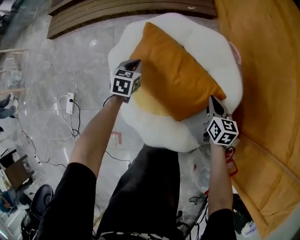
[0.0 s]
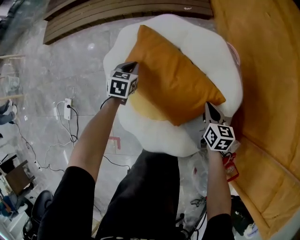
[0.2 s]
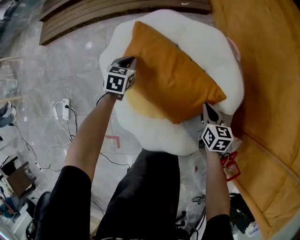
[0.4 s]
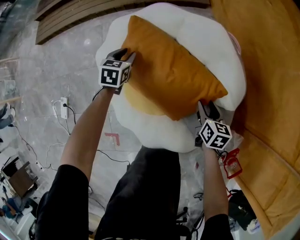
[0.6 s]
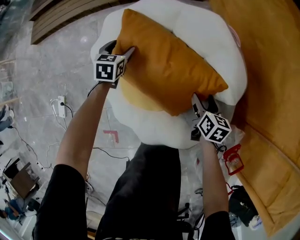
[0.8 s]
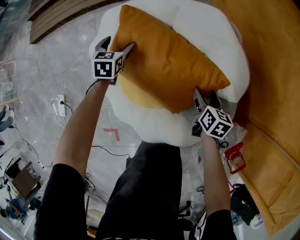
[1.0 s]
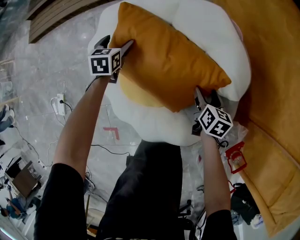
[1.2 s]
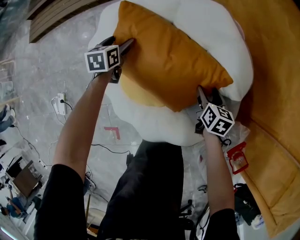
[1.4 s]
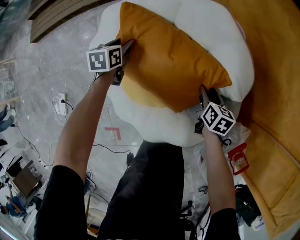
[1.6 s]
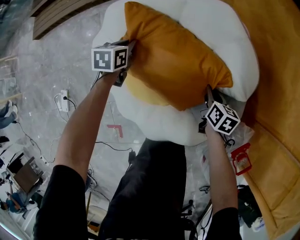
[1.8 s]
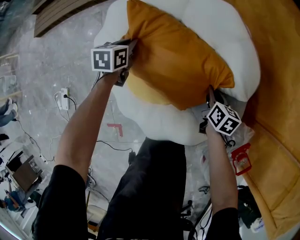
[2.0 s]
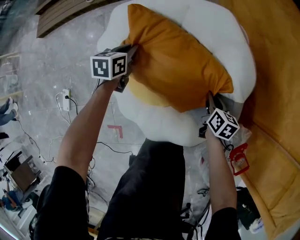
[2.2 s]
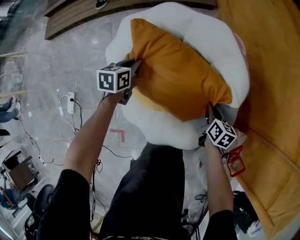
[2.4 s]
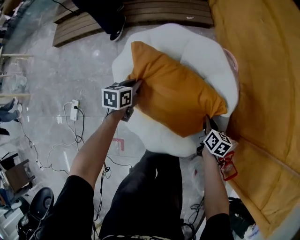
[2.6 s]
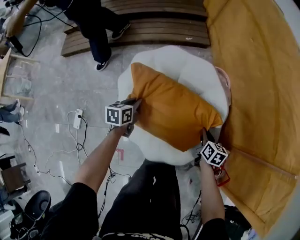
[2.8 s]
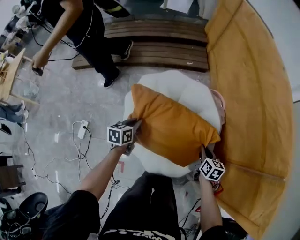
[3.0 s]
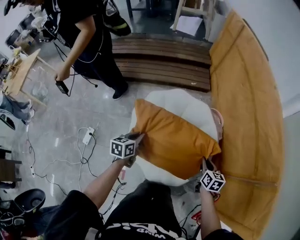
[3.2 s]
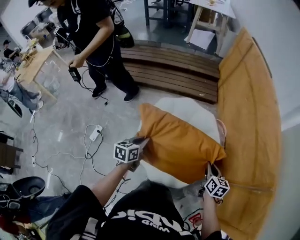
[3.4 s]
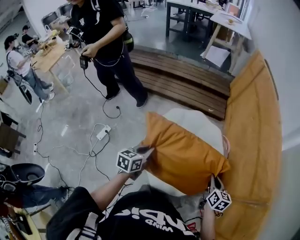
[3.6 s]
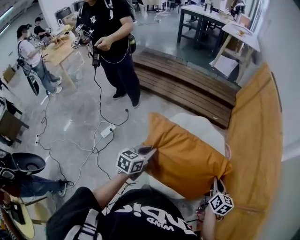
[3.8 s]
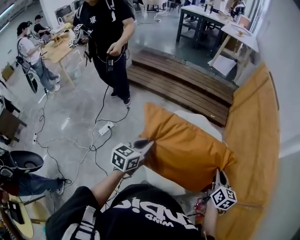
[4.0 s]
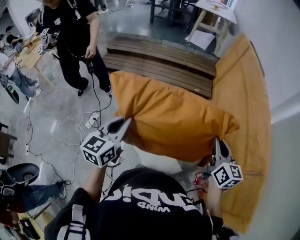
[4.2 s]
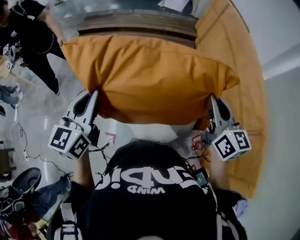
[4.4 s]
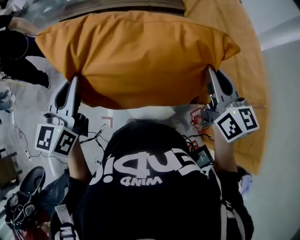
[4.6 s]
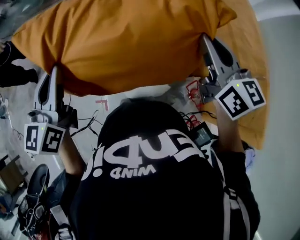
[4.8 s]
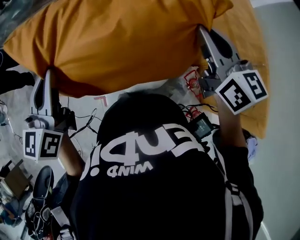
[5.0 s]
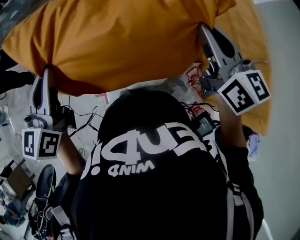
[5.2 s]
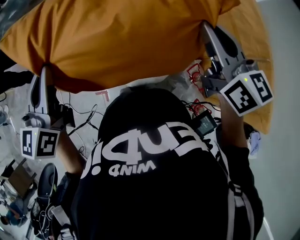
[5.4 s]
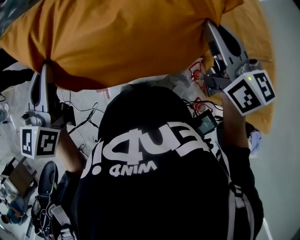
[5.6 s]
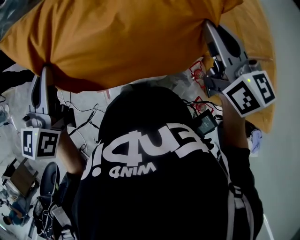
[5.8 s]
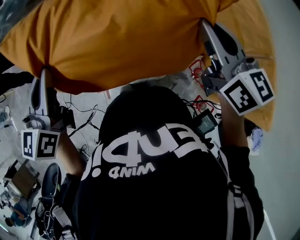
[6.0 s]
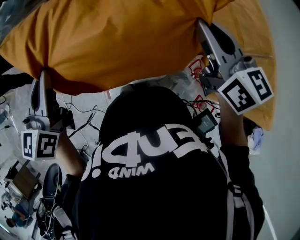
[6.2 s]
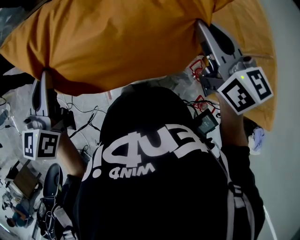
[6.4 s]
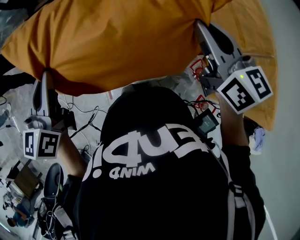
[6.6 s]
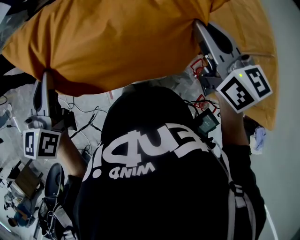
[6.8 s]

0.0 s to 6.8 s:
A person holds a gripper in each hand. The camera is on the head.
0.0 to 1.4 s: The right gripper shifts about 15 cm downward, and opens up, while the left gripper shifts some 10 cm downward and forward, and opens.
1.4 to 2.8 s: The grippers both shift upward and backward by approximately 20 cm. The right gripper closes its fingers. The left gripper closes up.
2.8 to 4.0 s: The left gripper is displaced upward and backward by approximately 50 cm, and changes its angle by some 30 degrees. Meanwhile the right gripper shifts approximately 40 cm upward, and turns by about 30 degrees.
4.0 to 5.4 s: The two grippers go approximately 15 cm upward.
5.4 to 6.8 s: The grippers move only a little.

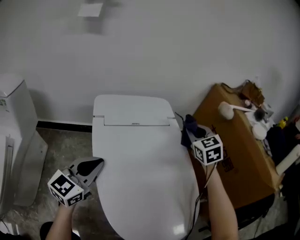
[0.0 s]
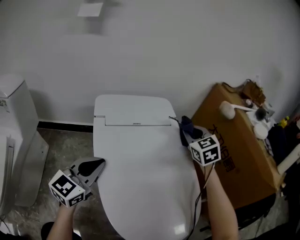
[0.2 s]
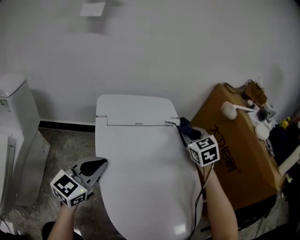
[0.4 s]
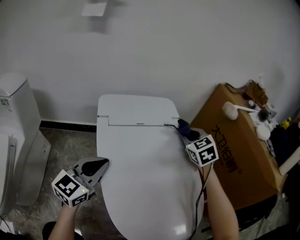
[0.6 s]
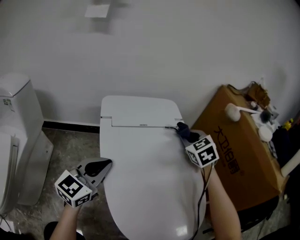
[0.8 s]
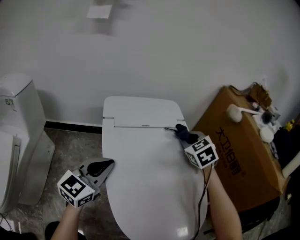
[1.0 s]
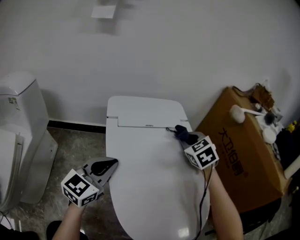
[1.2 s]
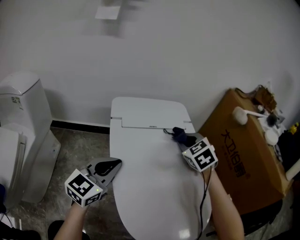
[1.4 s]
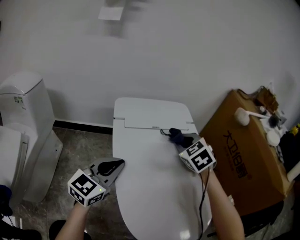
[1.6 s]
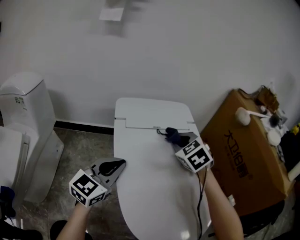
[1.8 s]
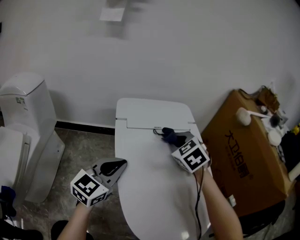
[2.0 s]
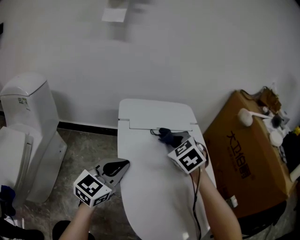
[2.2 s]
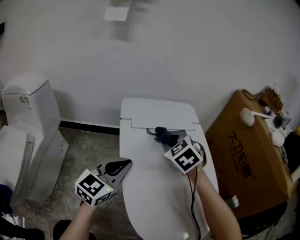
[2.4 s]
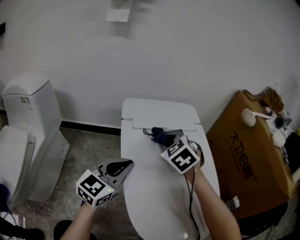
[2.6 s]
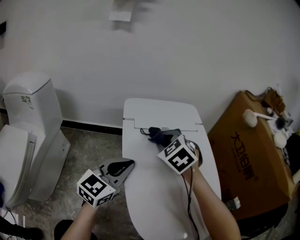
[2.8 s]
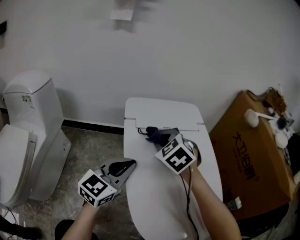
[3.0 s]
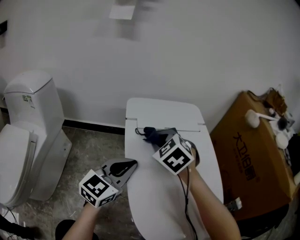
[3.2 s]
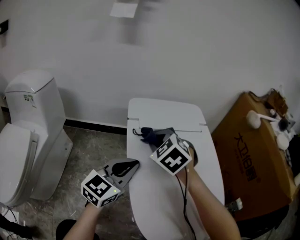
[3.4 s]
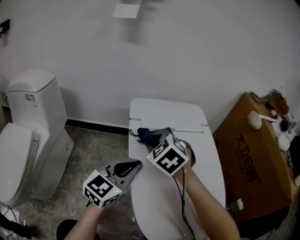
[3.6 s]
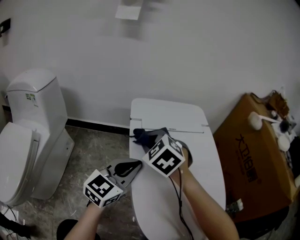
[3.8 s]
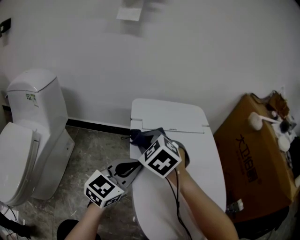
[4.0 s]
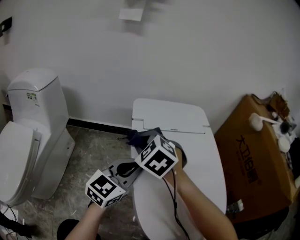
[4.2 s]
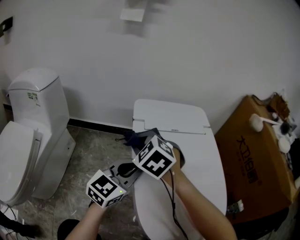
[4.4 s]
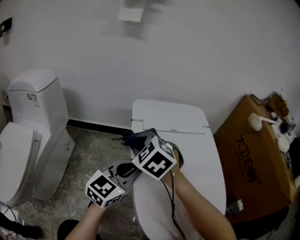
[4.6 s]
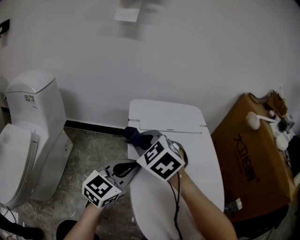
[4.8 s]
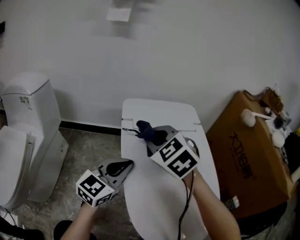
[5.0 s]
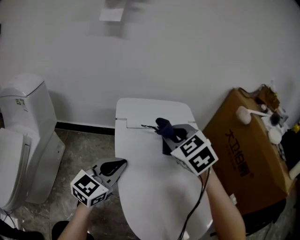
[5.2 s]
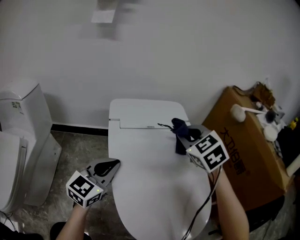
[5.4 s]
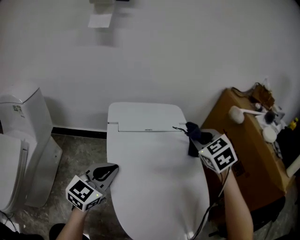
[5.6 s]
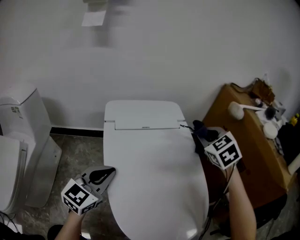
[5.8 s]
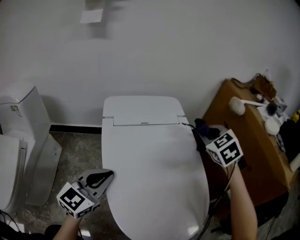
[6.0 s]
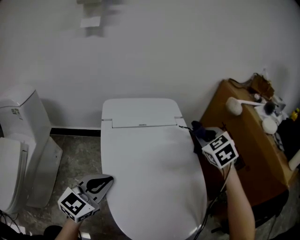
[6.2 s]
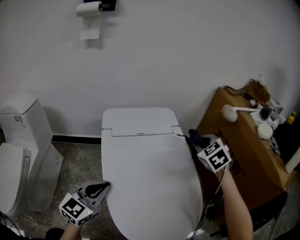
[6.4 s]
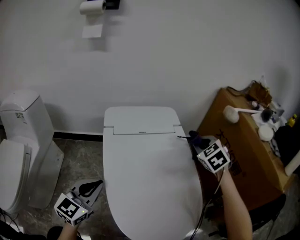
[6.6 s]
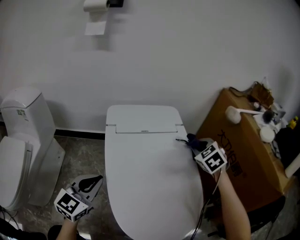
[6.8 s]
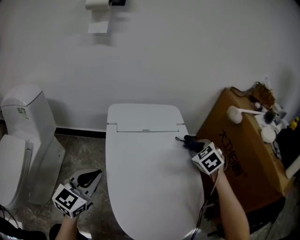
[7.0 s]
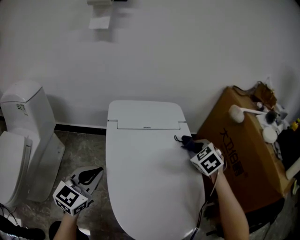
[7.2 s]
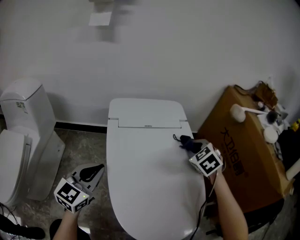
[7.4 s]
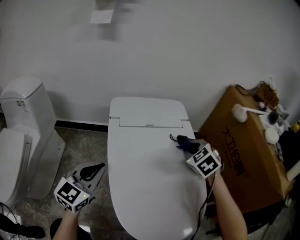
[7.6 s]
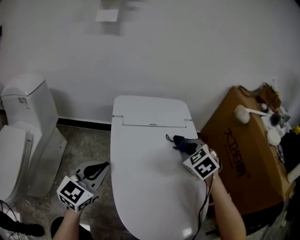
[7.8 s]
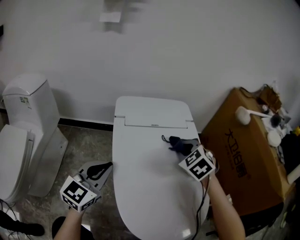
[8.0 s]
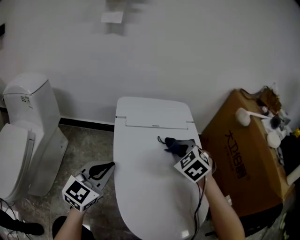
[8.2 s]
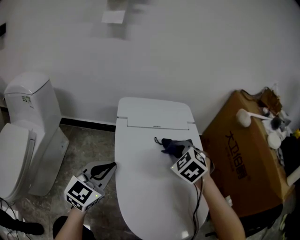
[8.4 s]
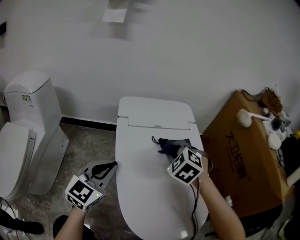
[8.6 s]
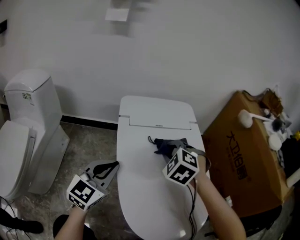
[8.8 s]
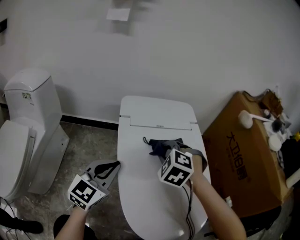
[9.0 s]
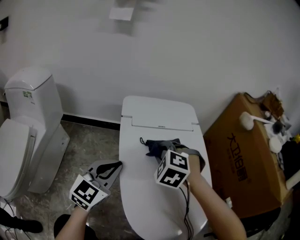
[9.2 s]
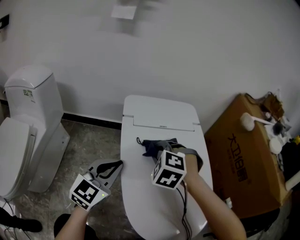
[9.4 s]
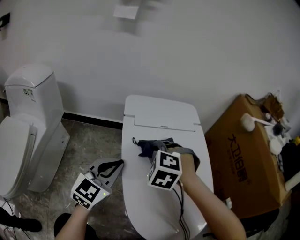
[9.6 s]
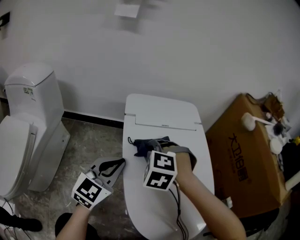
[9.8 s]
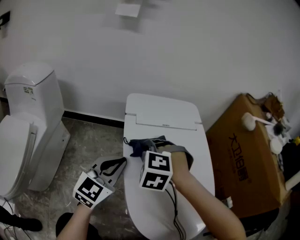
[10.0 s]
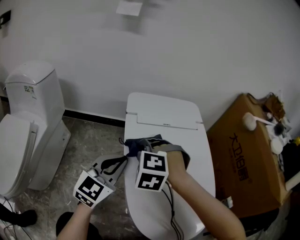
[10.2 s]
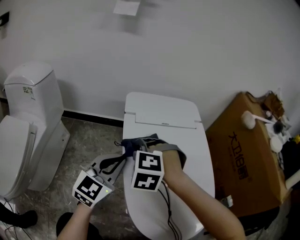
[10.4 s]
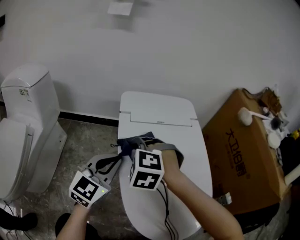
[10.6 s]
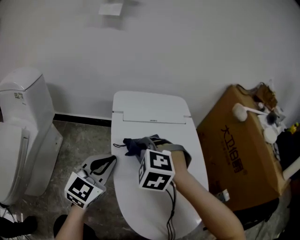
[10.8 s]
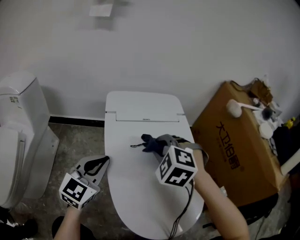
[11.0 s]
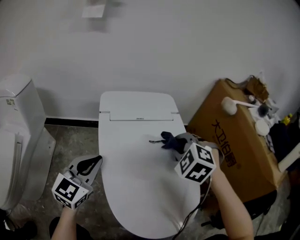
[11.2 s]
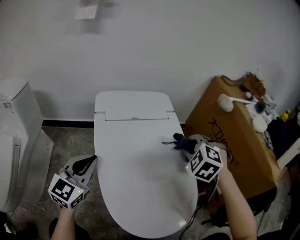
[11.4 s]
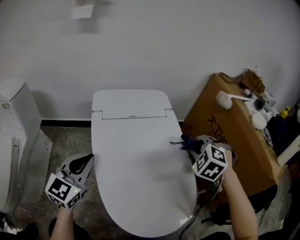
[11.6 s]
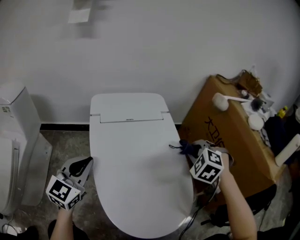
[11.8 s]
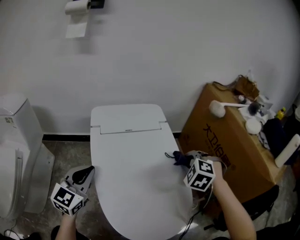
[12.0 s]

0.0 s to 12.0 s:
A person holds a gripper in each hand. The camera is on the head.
0.0 to 1.6 s: The right gripper goes roughly 15 cm to the left, downward and backward, and turns by some 20 degrees.
1.6 to 3.0 s: The right gripper goes about 15 cm to the left.
3.0 to 4.4 s: The right gripper moves to the left, approximately 10 cm.
4.4 to 6.0 s: The right gripper heads to the right, covering roughly 35 cm, and swivels approximately 30 degrees.
6.0 to 7.6 s: The left gripper goes approximately 5 cm to the left; the right gripper heads downward and to the left, covering some 10 cm.
7.6 to 9.0 s: The right gripper goes about 15 cm to the left, and rotates approximately 30 degrees.
9.0 to 10.4 s: The right gripper goes approximately 10 cm to the left.
10.4 to 12.0 s: The right gripper heads to the right, covering about 35 cm, and turns by approximately 30 degrees.

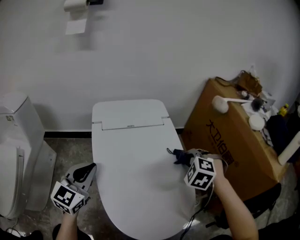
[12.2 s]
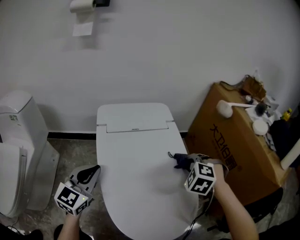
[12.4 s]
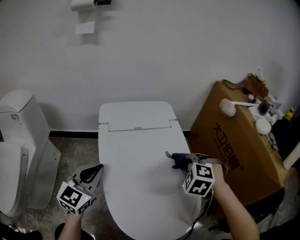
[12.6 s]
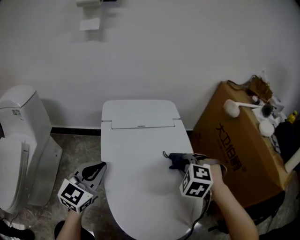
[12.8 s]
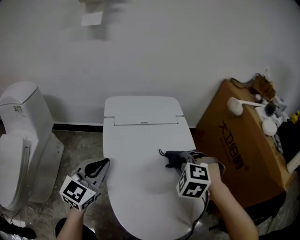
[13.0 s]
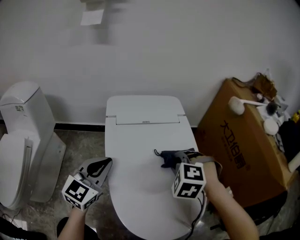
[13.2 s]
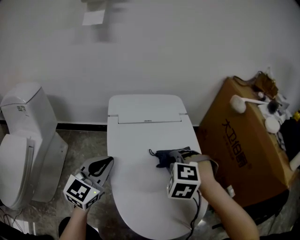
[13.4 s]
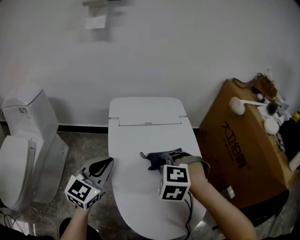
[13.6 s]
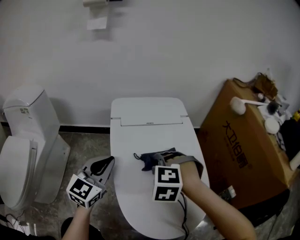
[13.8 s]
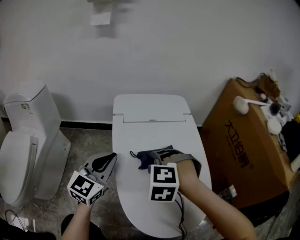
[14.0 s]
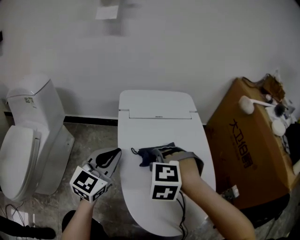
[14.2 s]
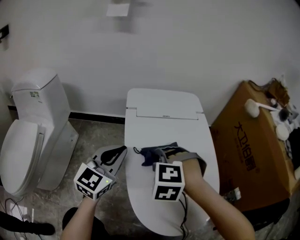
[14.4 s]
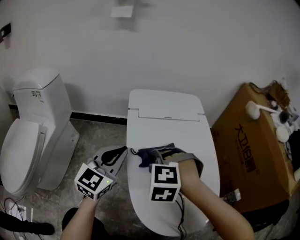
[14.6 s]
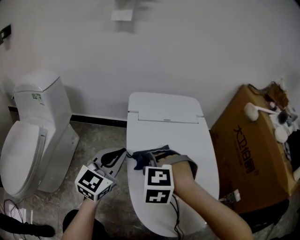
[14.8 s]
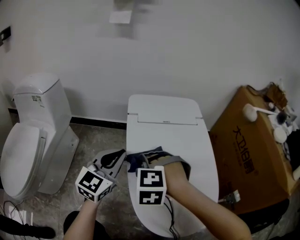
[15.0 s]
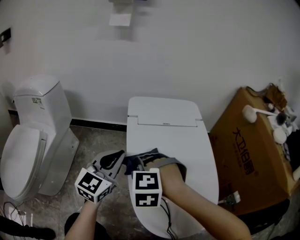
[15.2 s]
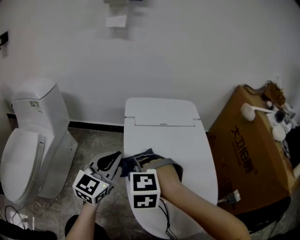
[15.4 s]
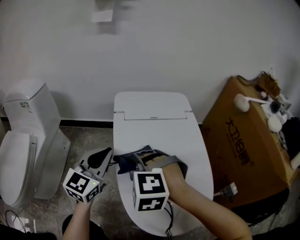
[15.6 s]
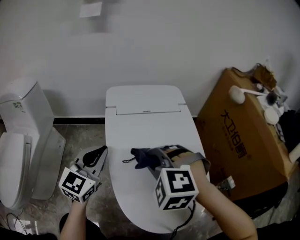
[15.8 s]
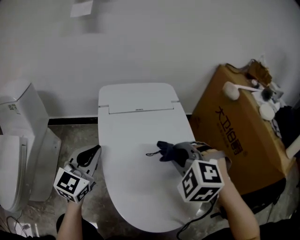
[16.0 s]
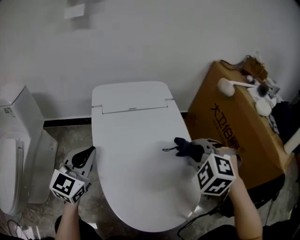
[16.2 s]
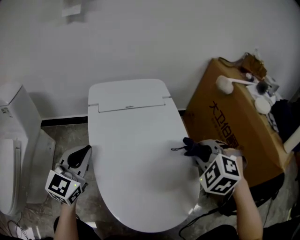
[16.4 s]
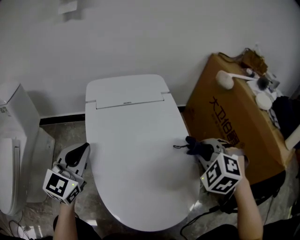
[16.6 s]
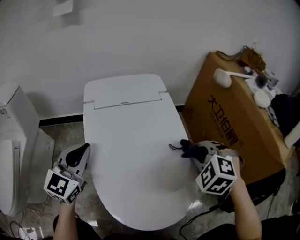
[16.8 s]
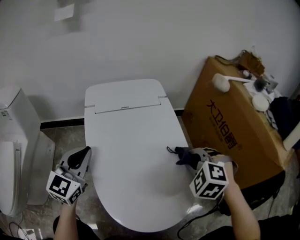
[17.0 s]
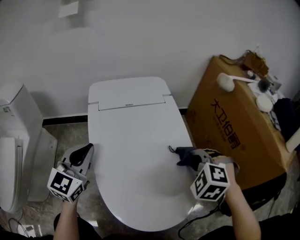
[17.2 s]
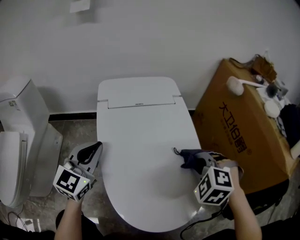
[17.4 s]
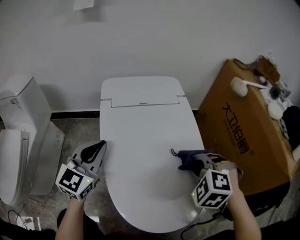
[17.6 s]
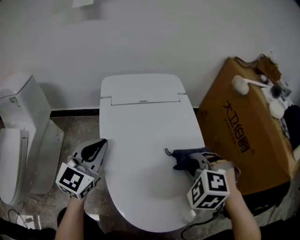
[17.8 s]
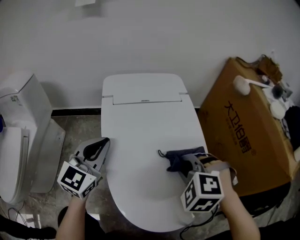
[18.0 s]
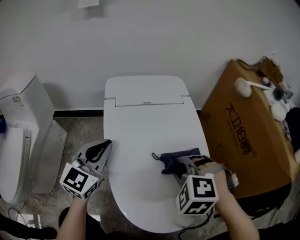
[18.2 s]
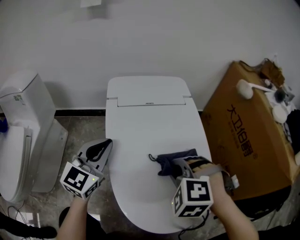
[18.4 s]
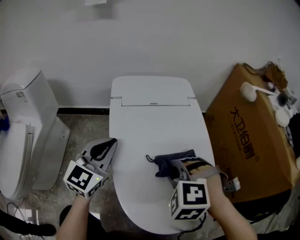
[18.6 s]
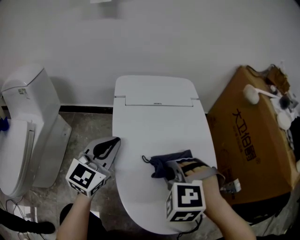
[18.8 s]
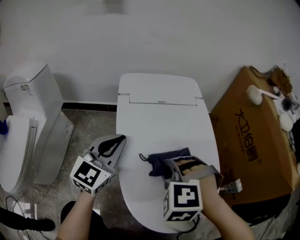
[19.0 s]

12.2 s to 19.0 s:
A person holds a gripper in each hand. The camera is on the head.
12.2 to 13.6 s: The right gripper goes about 20 cm to the left and backward.
13.6 to 15.0 s: The right gripper goes roughly 15 cm to the left.
15.0 to 16.2 s: The right gripper moves to the right, approximately 25 cm, and rotates some 30 degrees.
16.2 to 17.6 s: The right gripper is displaced downward by about 5 cm.
17.6 to 19.0 s: The right gripper travels to the left by roughly 15 cm.
